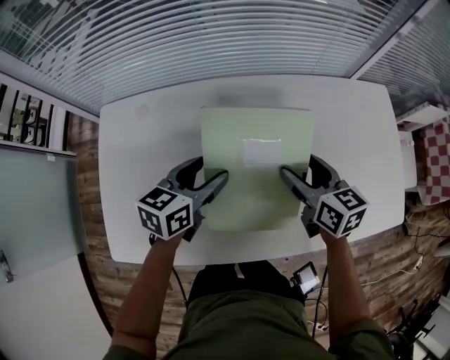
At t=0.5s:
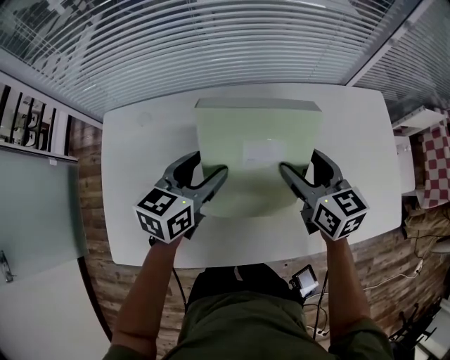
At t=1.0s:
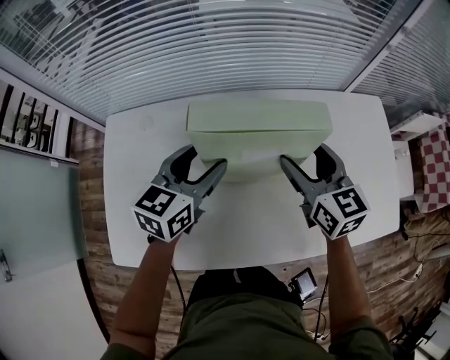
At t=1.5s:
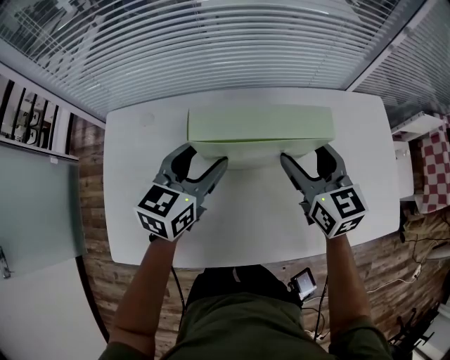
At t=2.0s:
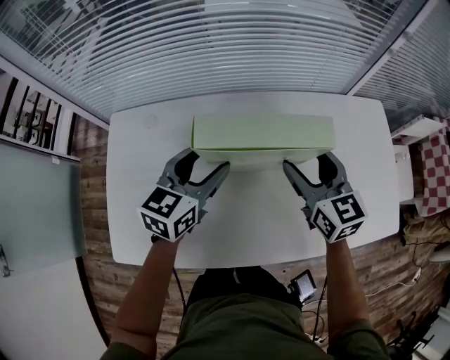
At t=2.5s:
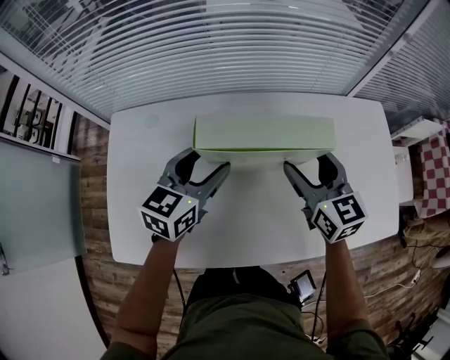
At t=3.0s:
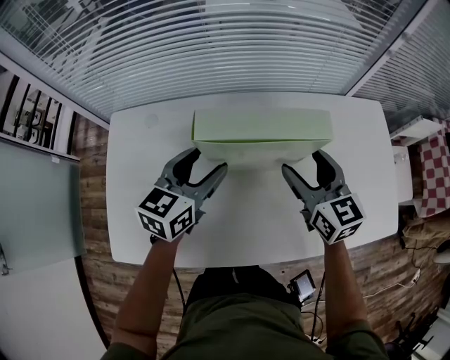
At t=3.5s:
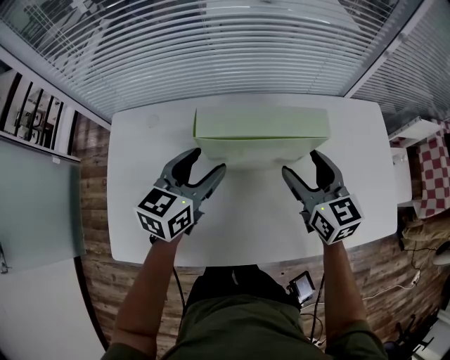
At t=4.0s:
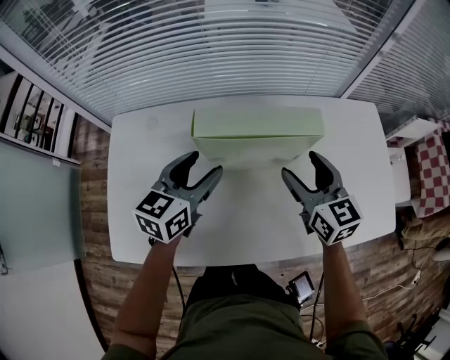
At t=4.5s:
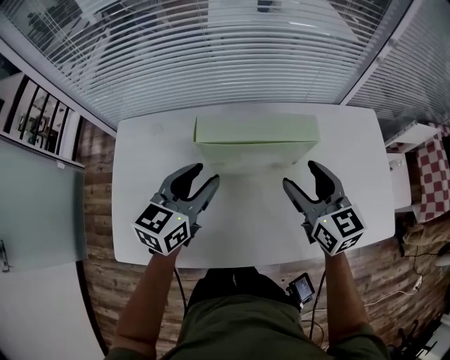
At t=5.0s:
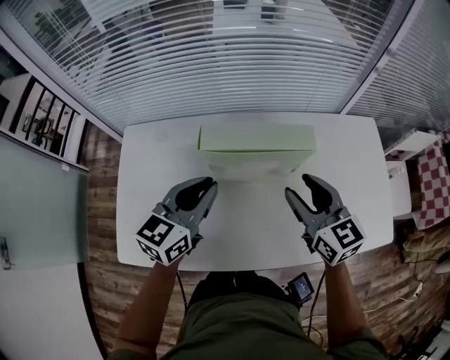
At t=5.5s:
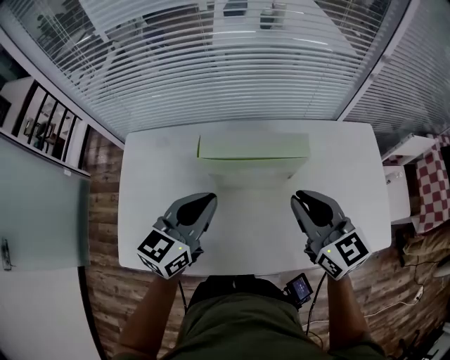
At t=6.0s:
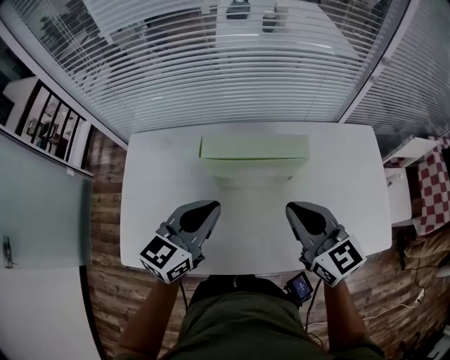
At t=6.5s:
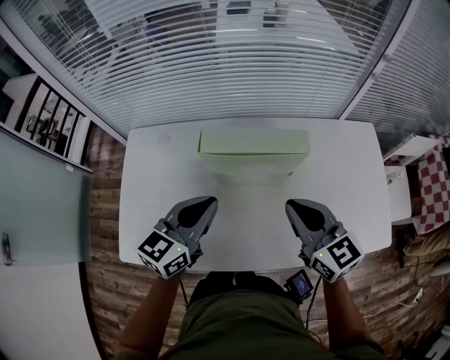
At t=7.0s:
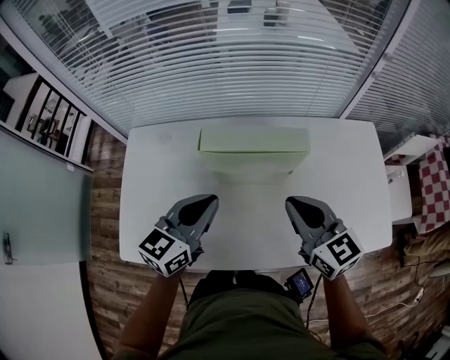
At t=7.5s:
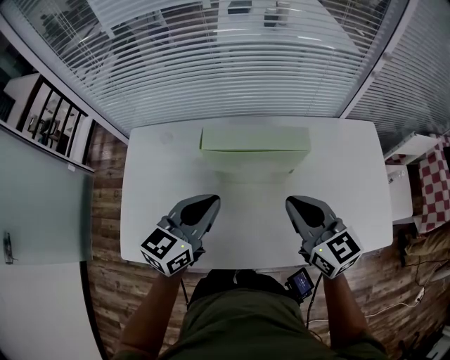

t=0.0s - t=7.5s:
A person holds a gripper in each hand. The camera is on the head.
t=0.0s - t=2.0s: The grippers both shift upward by about 5 cm. The right gripper rotates some 20 degrees.
t=2.0s - t=4.0s: There are only small adjustments of the grippers.
t=4.0s - t=5.5s: Both grippers move upward and backward, roughly 10 cm. The left gripper closes its fingers, while the right gripper closes up.
t=5.5s - t=7.5s: There are only small adjustments of the grippers.

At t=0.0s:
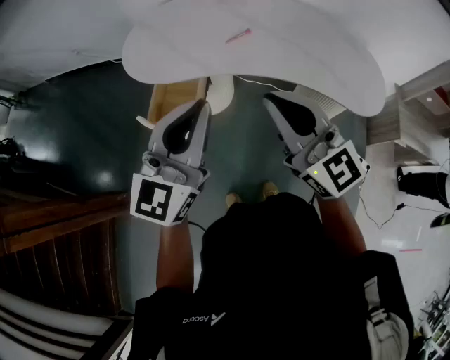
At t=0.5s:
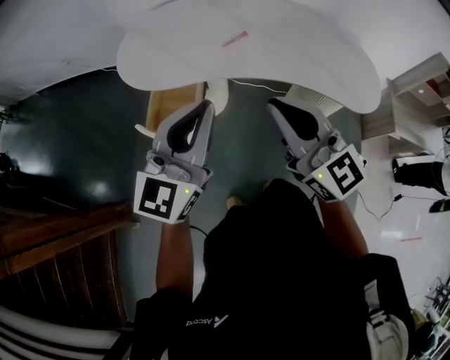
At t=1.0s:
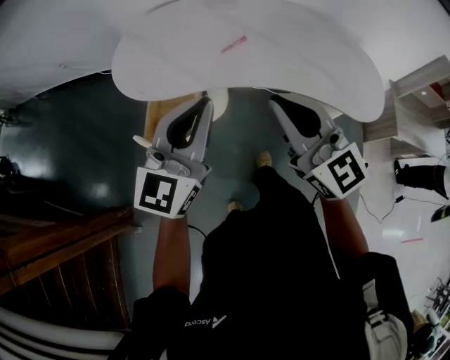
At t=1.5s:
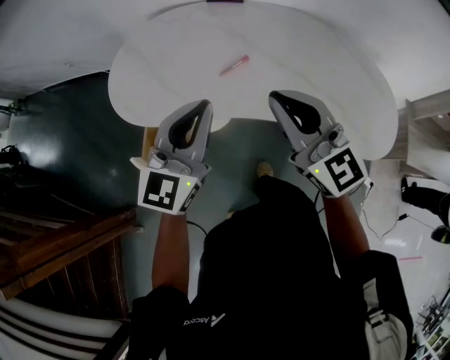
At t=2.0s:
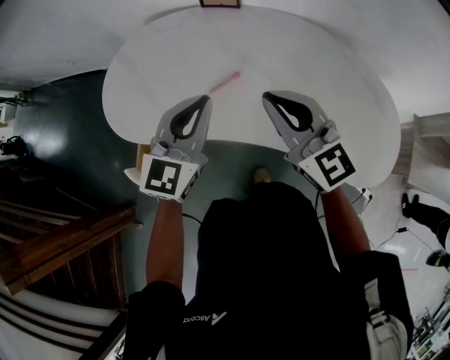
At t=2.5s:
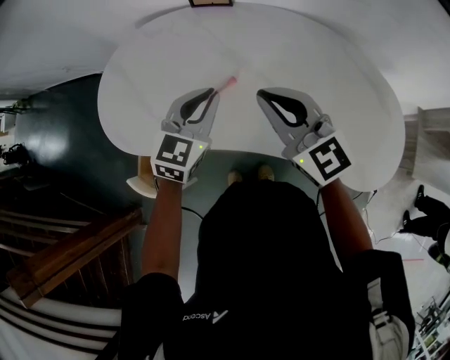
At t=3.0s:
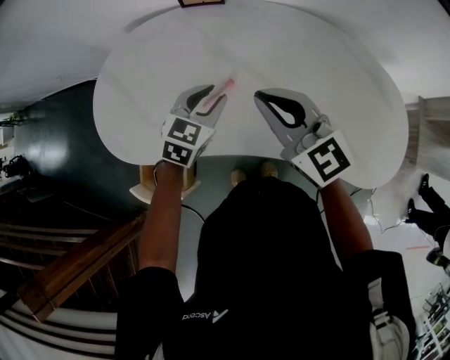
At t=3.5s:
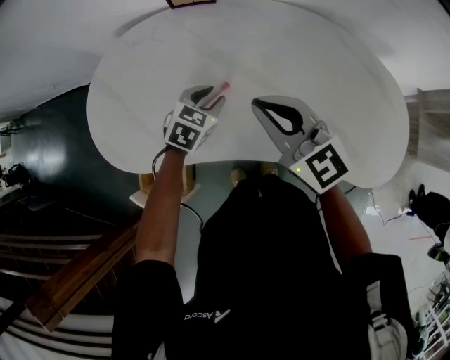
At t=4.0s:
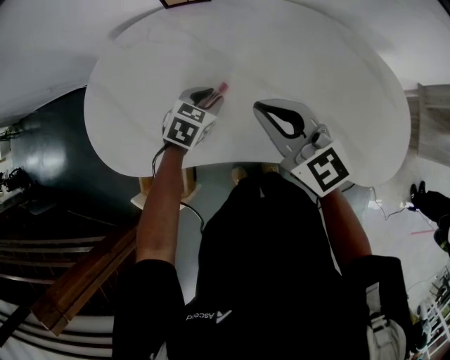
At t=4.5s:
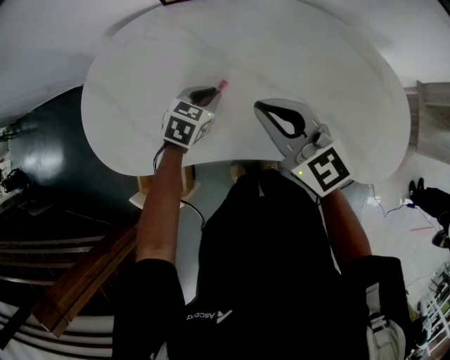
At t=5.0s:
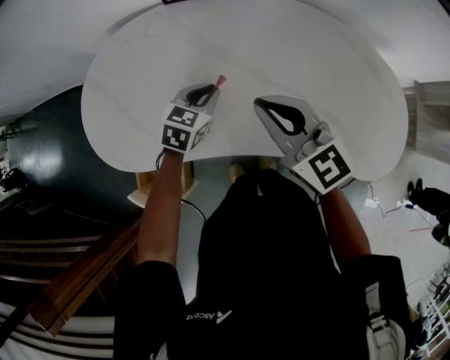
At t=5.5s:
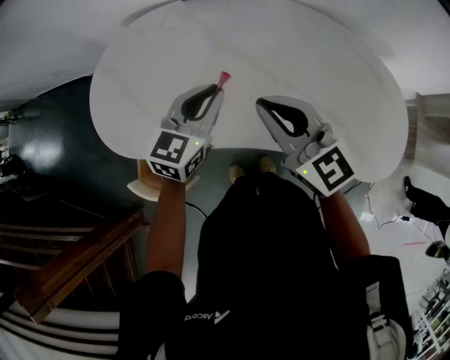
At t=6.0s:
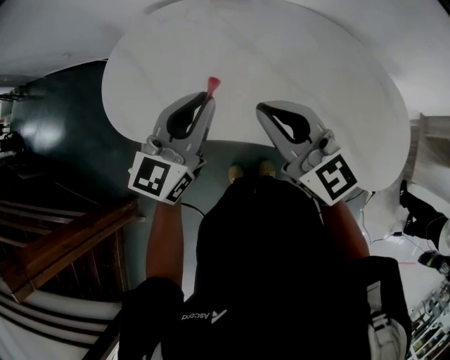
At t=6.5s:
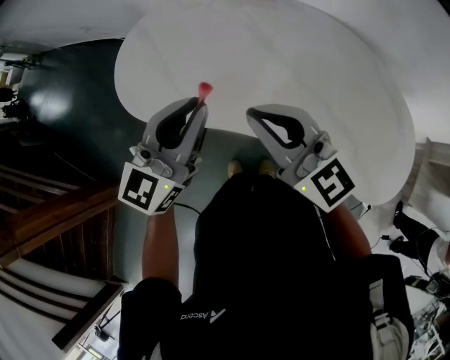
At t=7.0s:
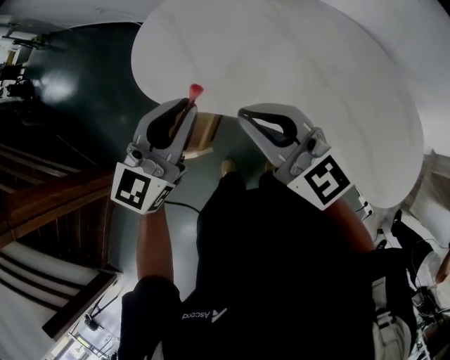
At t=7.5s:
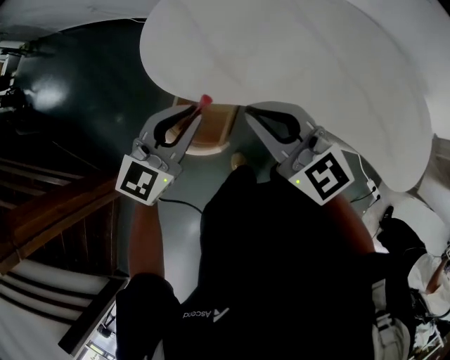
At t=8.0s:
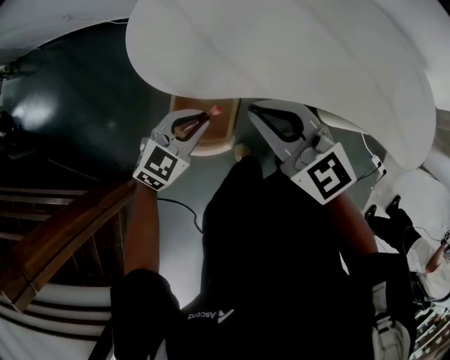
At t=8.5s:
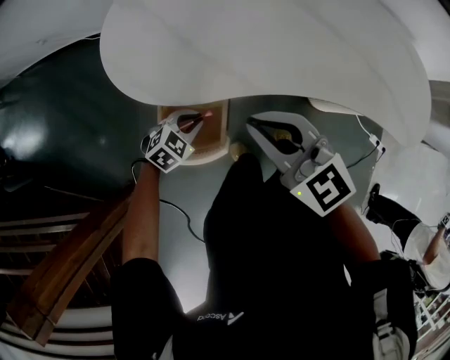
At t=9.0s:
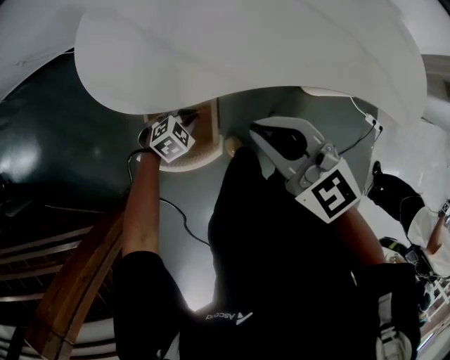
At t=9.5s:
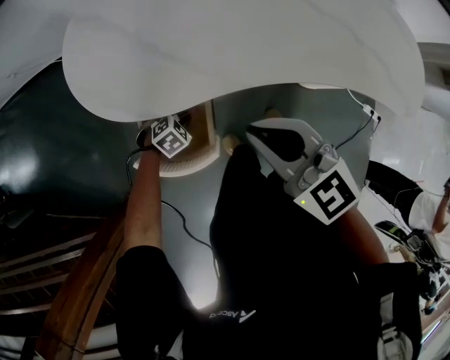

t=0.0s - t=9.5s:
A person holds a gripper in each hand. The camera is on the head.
t=0.0s - t=2.0s: The grippers both shift forward by about 30 cm.
t=2.0s - t=4.0s: The right gripper goes about 10 cm forward and downward. The left gripper moves downward and forward, approximately 30 cm, tips its fingers downward by about 50 degrees, and opens.
t=4.0s - t=5.5s: The right gripper changes place by roughly 5 cm. The left gripper heads upward and backward, covering roughly 15 cm, and points its fingers about 30 degrees further upward.
t=5.5s - t=7.5s: The right gripper travels to the left by about 25 cm, and changes its angle by approximately 20 degrees, while the left gripper is displaced to the left and backward by some 30 cm.
t=7.5s - t=9.5s: The right gripper travels downward by about 10 cm, and swivels roughly 20 degrees, while the left gripper travels downward by roughly 40 cm, and tilts its fingers about 50 degrees downward.

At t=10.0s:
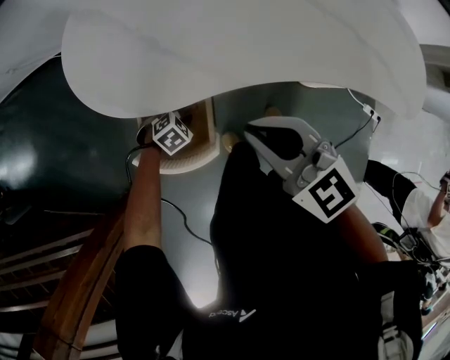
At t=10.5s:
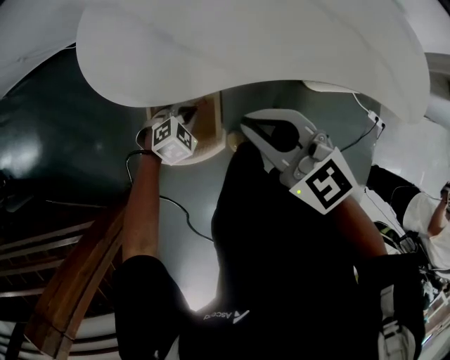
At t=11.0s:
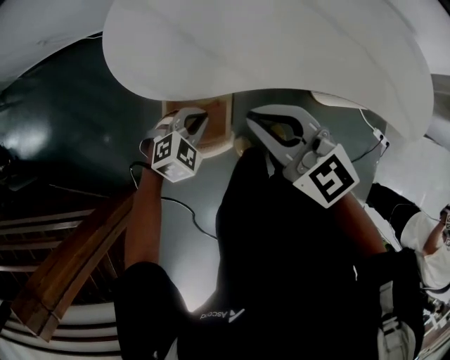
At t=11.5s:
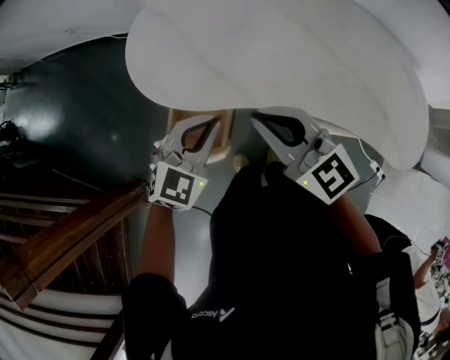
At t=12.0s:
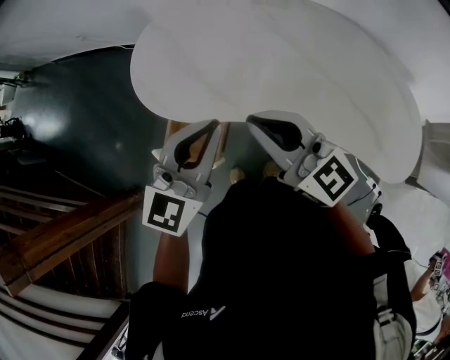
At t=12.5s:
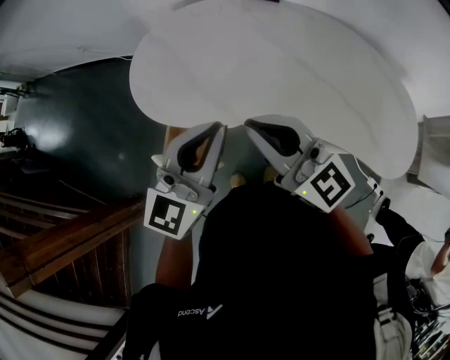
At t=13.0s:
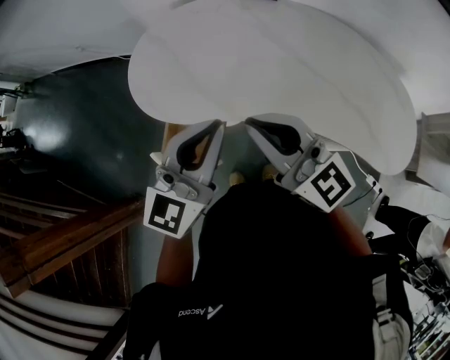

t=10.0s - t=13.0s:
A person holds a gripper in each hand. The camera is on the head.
t=10.0s - t=11.5s: The left gripper travels upward by roughly 35 cm, points its fingers about 40 degrees further upward, and closes up. The right gripper travels upward by some 10 cm.
t=11.5s - t=13.0s: The right gripper travels upward by approximately 5 cm. Meanwhile the left gripper heads upward, covering about 15 cm, and tips its fingers upward by about 30 degrees.

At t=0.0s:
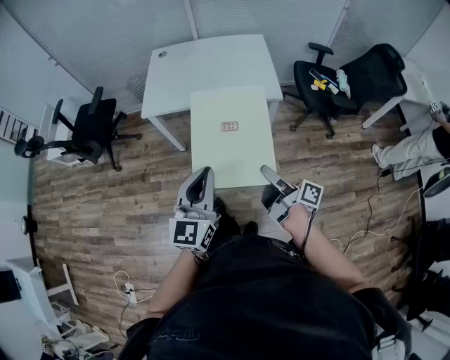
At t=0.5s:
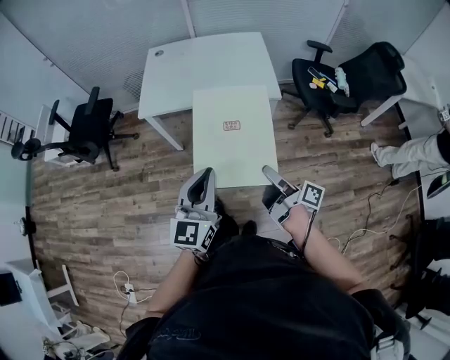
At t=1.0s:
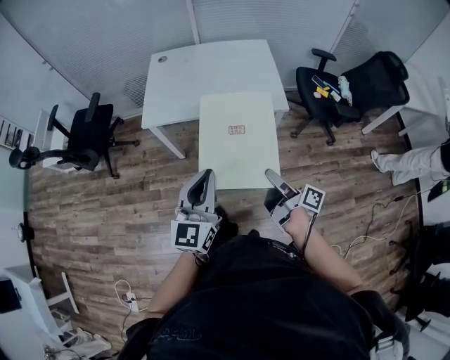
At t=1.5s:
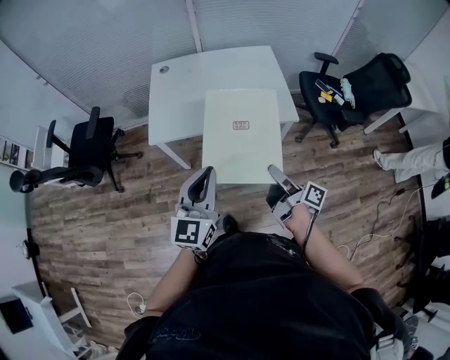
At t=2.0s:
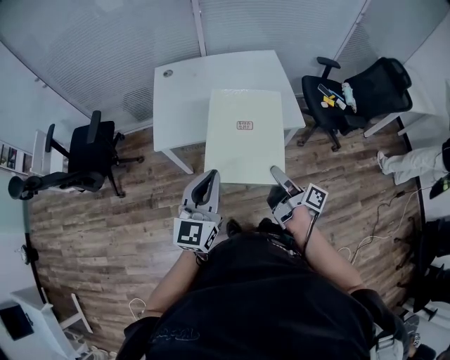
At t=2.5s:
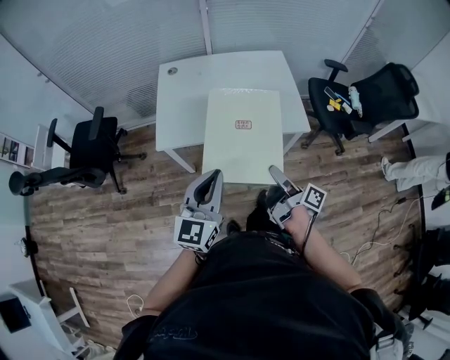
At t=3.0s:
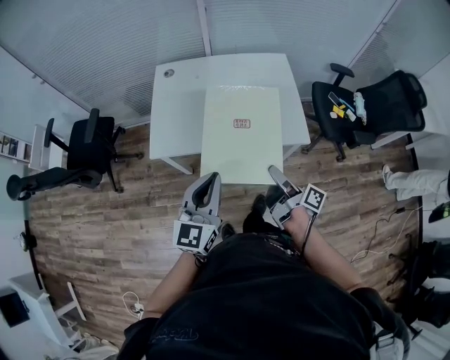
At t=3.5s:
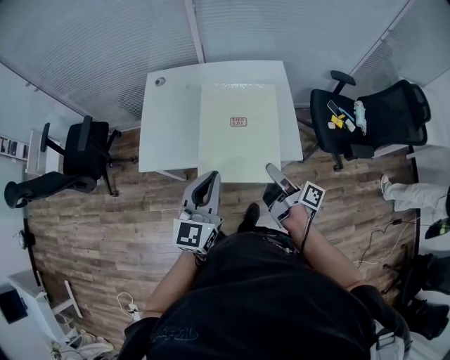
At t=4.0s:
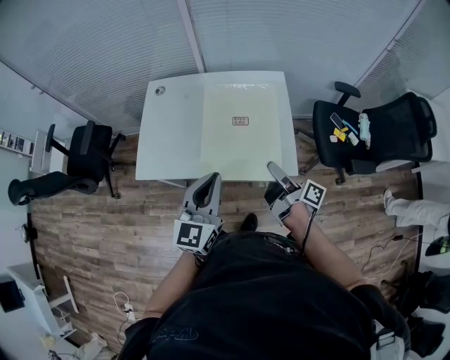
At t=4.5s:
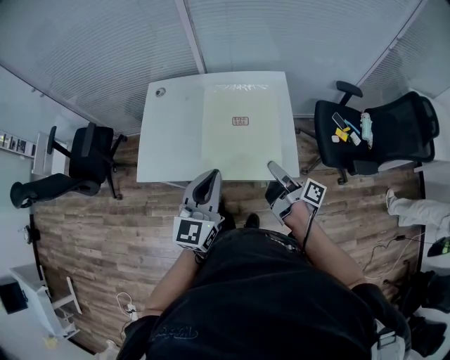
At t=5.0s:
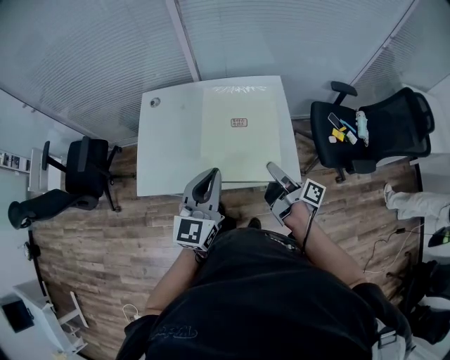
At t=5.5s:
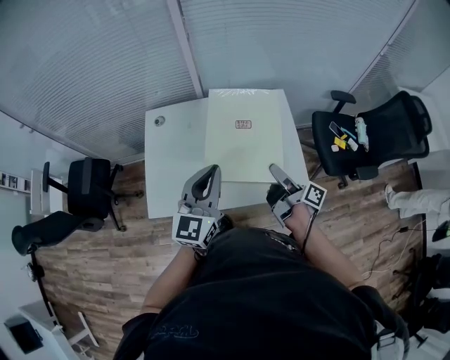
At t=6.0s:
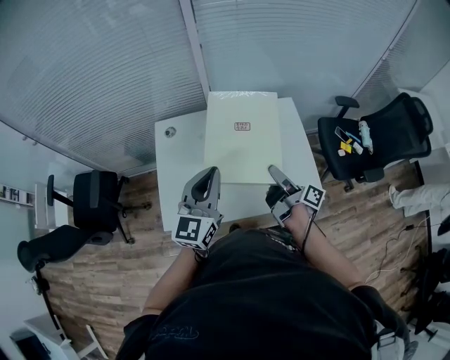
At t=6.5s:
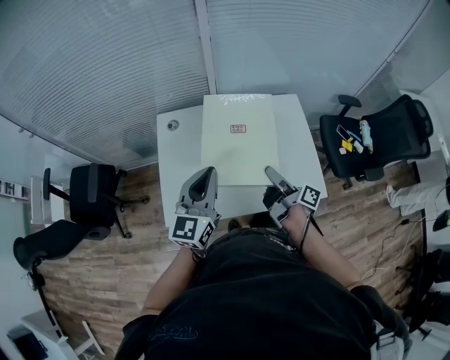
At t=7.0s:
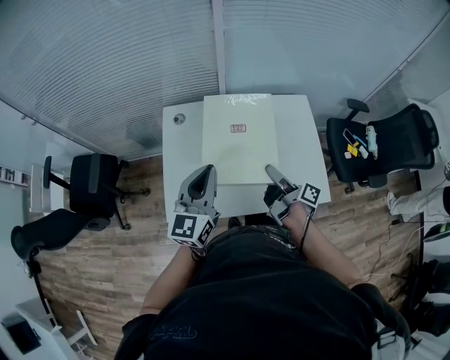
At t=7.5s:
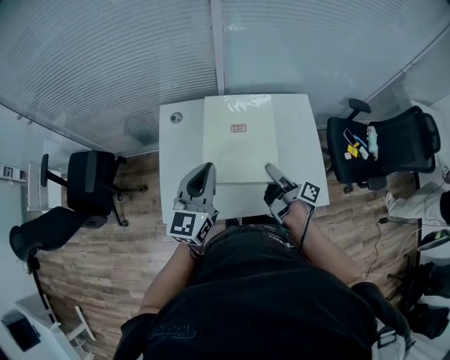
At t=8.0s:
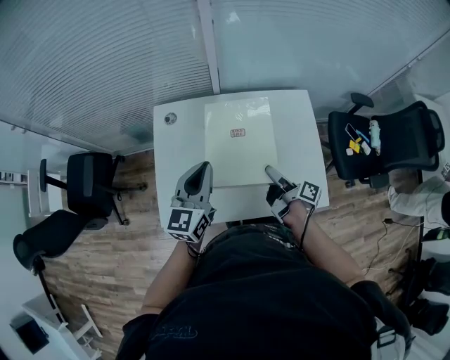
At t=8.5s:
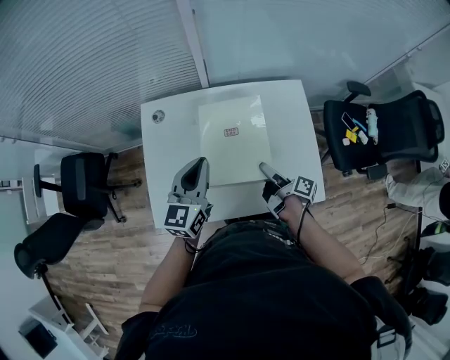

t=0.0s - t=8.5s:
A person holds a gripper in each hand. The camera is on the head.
t=0.0s - t=2.0s: The grippers both shift forward and to the left by approximately 20 cm.
t=2.0s - t=4.0s: Both grippers move forward and to the right, approximately 25 cm.
t=4.0s - t=6.5s: The right gripper travels to the left and forward by about 20 cm; the left gripper heads forward and to the left, covering approximately 25 cm.
t=6.5s - t=8.5s: The left gripper heads forward and downward, covering roughly 10 cm; the right gripper travels downward and forward by about 10 cm.
